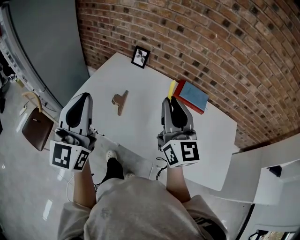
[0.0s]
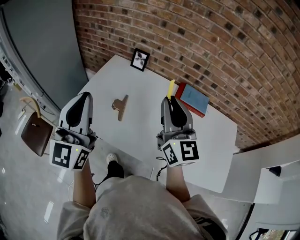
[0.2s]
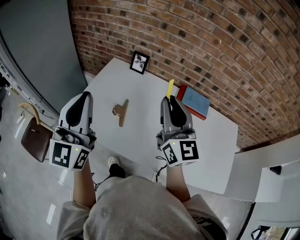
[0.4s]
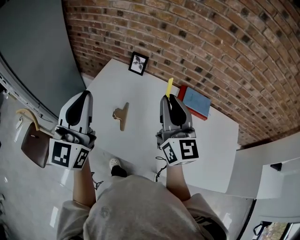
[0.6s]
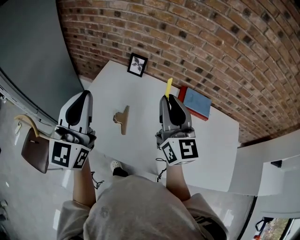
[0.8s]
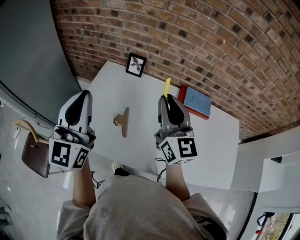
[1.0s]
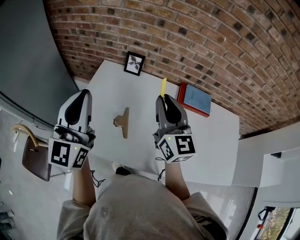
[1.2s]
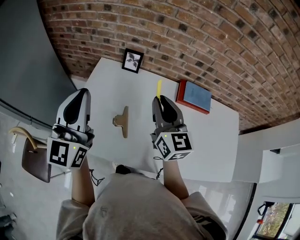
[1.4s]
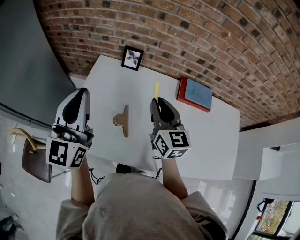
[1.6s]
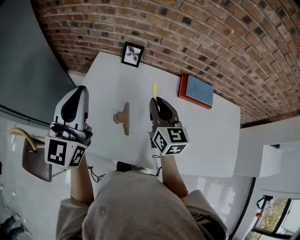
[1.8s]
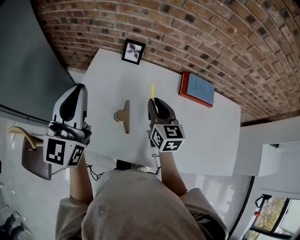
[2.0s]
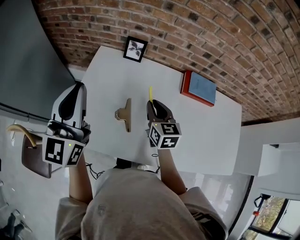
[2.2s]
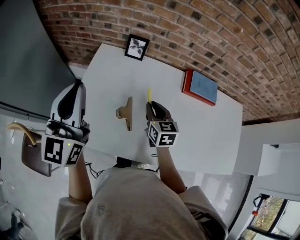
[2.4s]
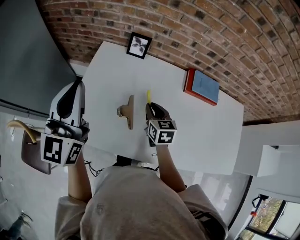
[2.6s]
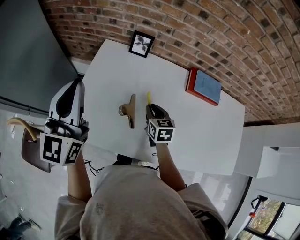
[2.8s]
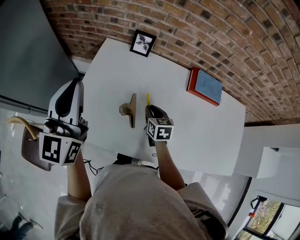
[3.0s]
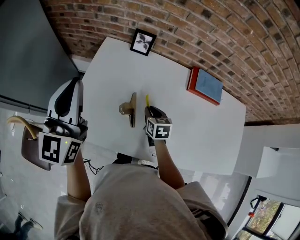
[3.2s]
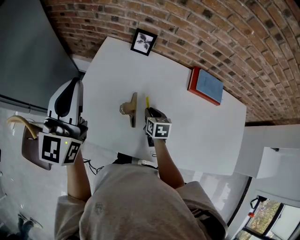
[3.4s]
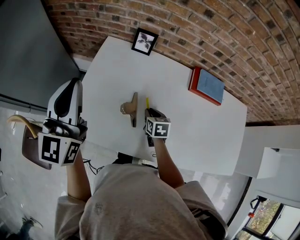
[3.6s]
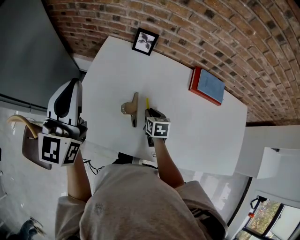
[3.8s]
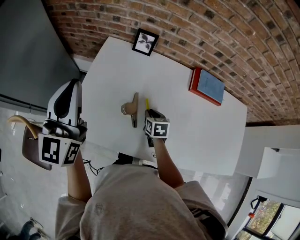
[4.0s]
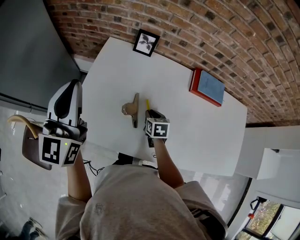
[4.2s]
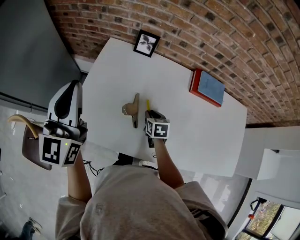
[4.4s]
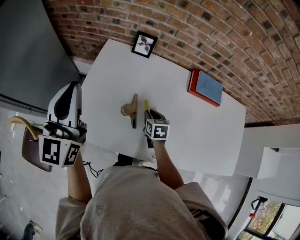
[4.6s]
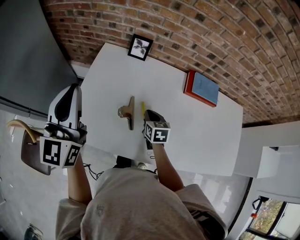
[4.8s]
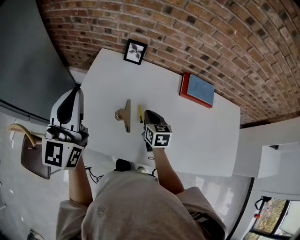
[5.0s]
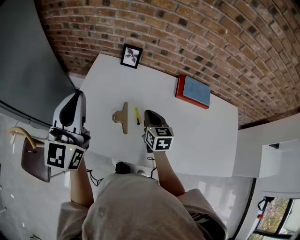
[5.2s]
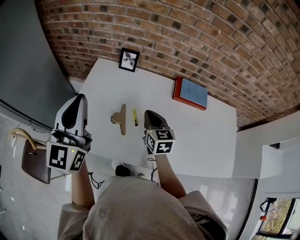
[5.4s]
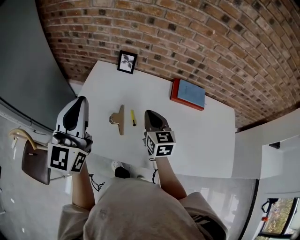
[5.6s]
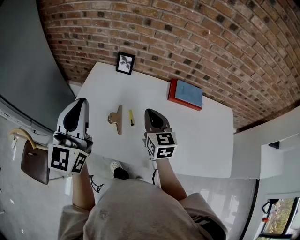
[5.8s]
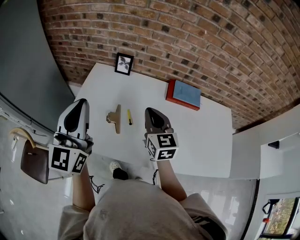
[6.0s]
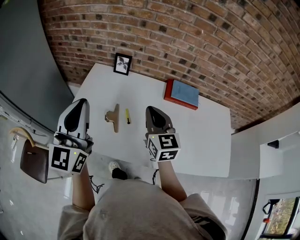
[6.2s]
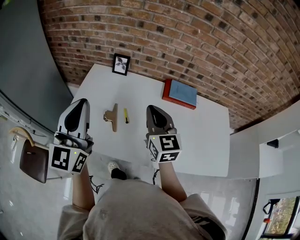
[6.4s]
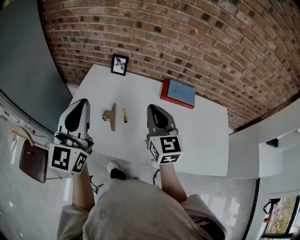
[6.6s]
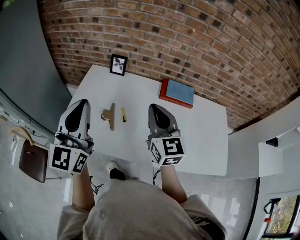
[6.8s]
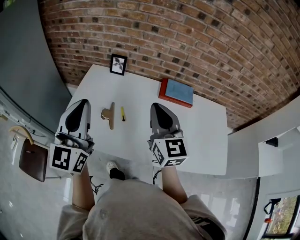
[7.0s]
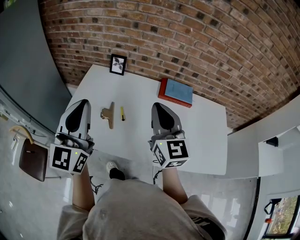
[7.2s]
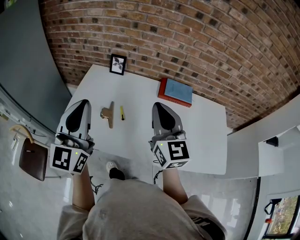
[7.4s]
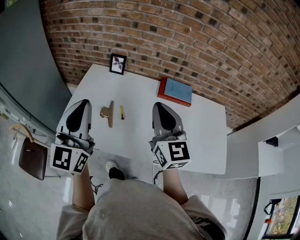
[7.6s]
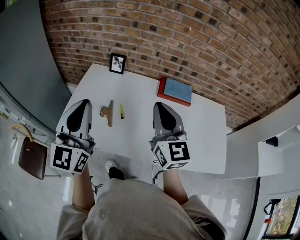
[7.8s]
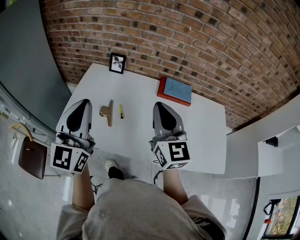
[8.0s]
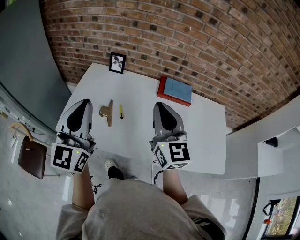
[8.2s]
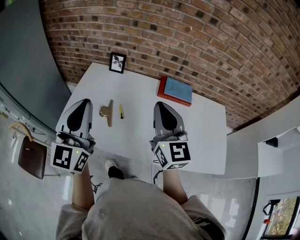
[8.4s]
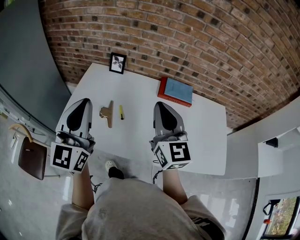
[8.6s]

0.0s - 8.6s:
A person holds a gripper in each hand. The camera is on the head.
0.0s - 1.4s: The left gripper is displaced forward by approximately 20 cm, while the right gripper heads forward, to the left and downward, covering approximately 20 cm.
1.4s - 2.8s: The right gripper is displaced downward by about 25 cm, and points its fingers some 40 degrees further downward. Meanwhile the left gripper shifts roughly 5 cm to the left.
2.8s - 4.4s: The right gripper shifts approximately 10 cm downward.
4.4s - 5.8s: The left gripper travels to the right and backward by some 15 cm; the right gripper heads upward, covering about 25 cm, and points its fingers some 40 degrees further upward.
5.8s - 7.2s: The left gripper heads backward and to the right, covering some 10 cm; the right gripper moves upward, backward and to the right, roughly 20 cm.
7.2s - 8.6s: The grippers move only a little.

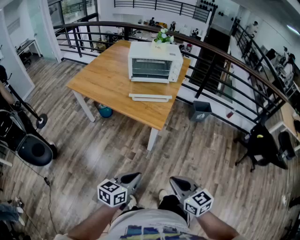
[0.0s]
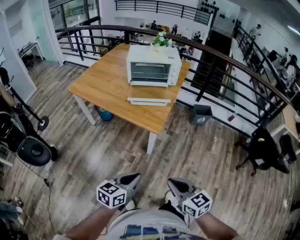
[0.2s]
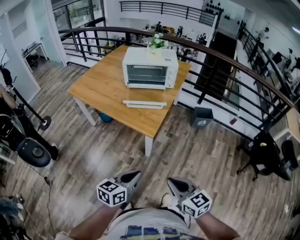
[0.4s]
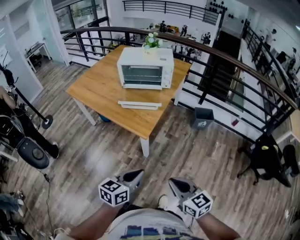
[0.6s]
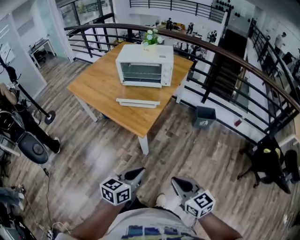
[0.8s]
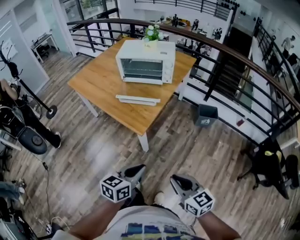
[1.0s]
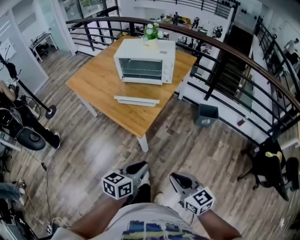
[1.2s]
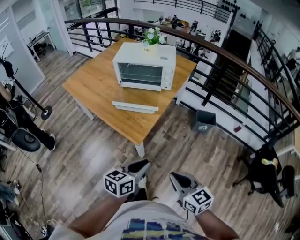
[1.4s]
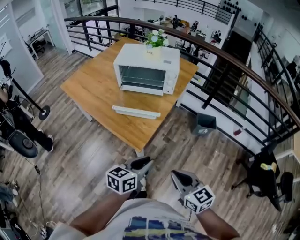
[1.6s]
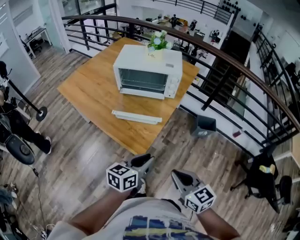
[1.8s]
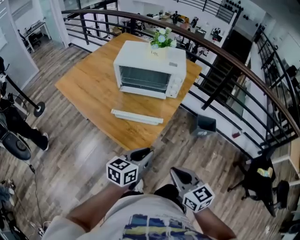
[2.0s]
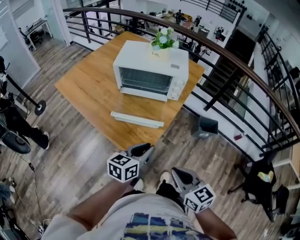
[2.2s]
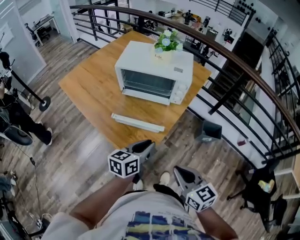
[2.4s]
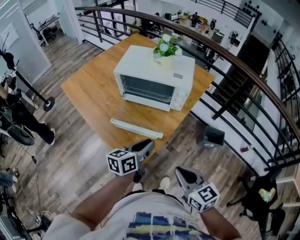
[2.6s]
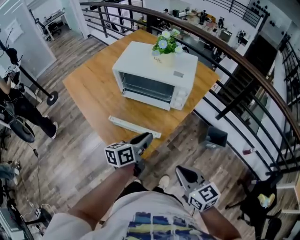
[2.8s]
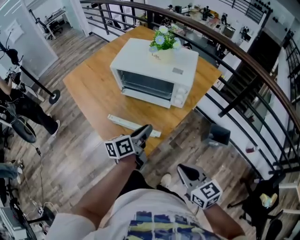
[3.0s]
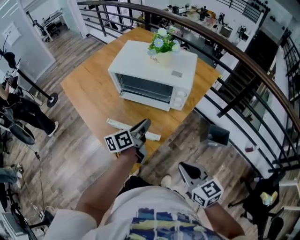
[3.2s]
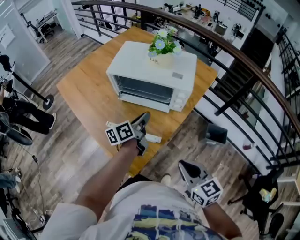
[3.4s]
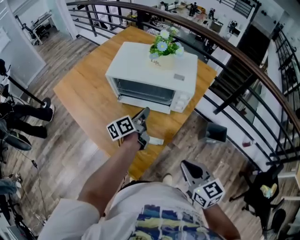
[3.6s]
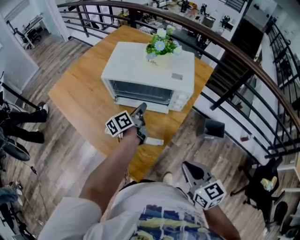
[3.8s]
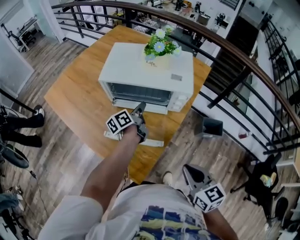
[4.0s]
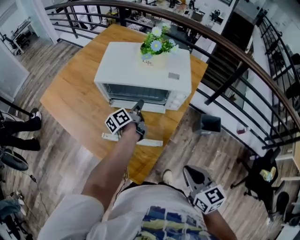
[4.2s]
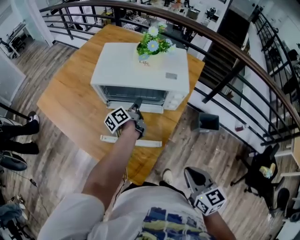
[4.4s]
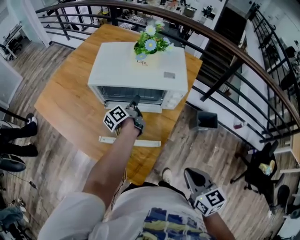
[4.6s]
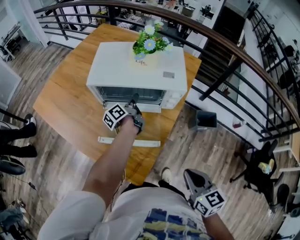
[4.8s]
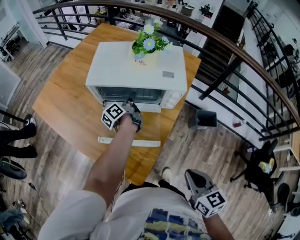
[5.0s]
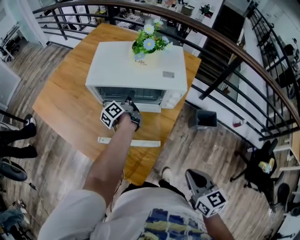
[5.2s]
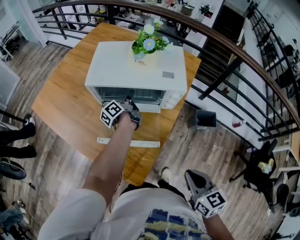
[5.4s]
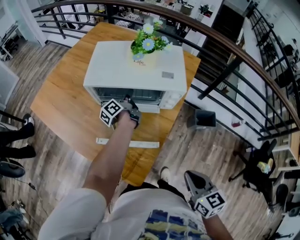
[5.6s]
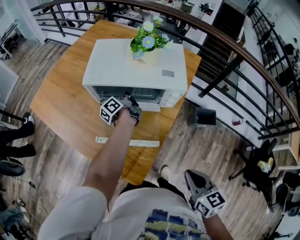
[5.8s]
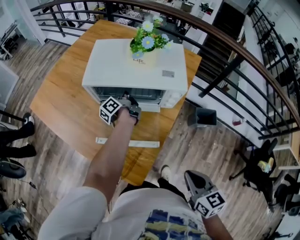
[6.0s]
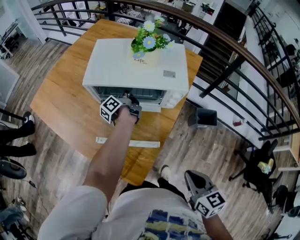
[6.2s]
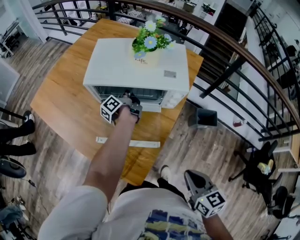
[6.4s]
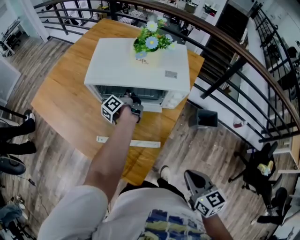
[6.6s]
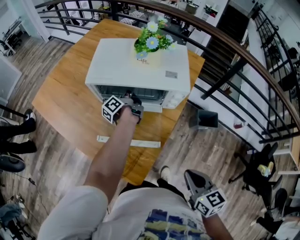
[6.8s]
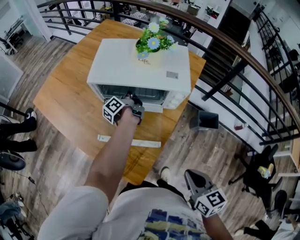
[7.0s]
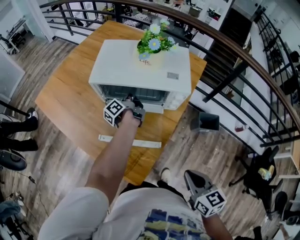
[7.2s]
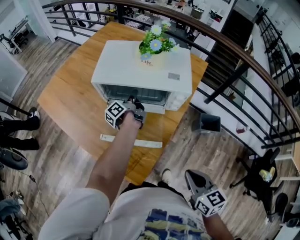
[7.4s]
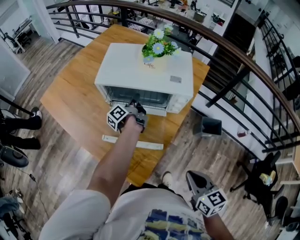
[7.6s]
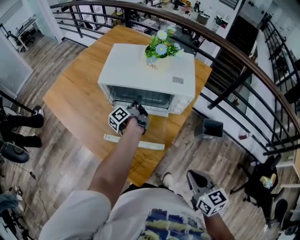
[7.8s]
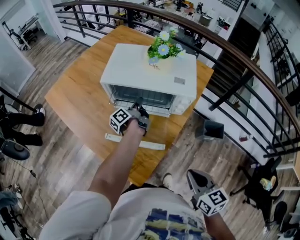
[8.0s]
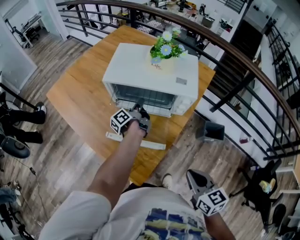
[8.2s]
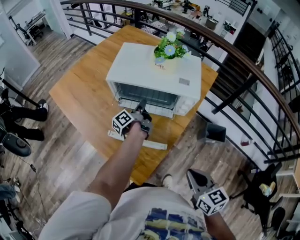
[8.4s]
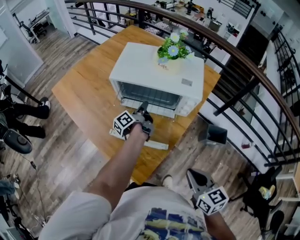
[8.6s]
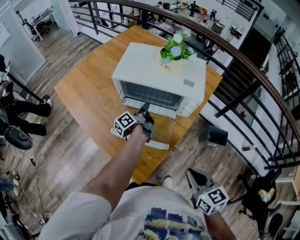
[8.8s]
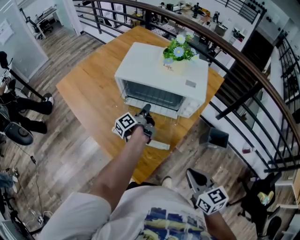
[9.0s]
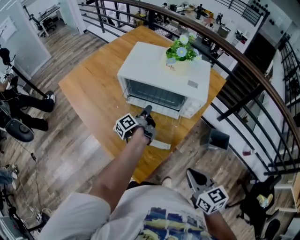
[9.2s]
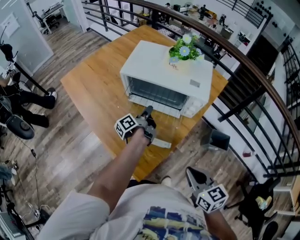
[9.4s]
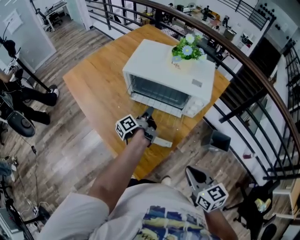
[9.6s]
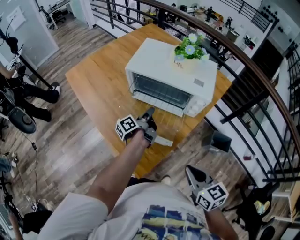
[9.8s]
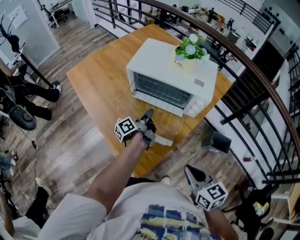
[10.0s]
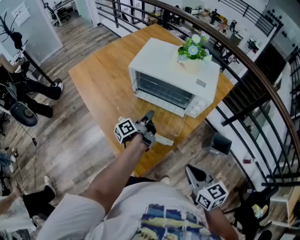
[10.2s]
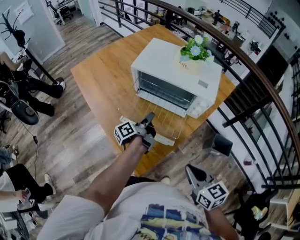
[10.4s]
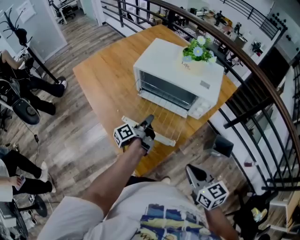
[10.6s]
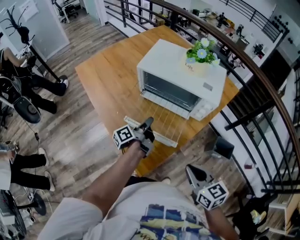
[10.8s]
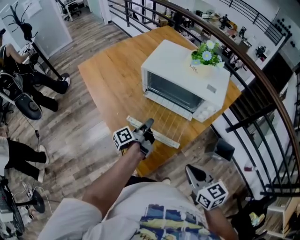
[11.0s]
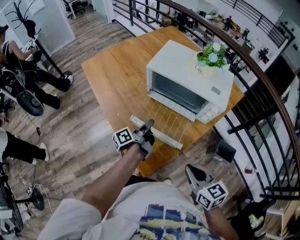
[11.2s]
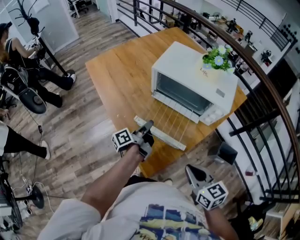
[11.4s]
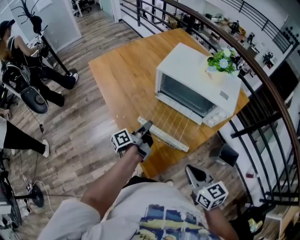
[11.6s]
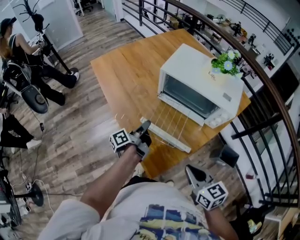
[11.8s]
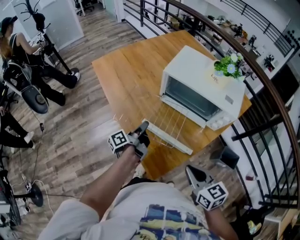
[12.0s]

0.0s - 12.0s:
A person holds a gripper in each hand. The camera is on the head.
0.0s - 1.6s: The right gripper shifts by some 30 cm.
1.6s - 3.0s: The right gripper moves some 25 cm.
3.0s - 4.4s: The right gripper moves about 5 cm, and rotates roughly 20 degrees.
10.4s - 12.0s: The right gripper changes place by some 10 cm.

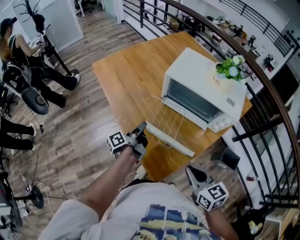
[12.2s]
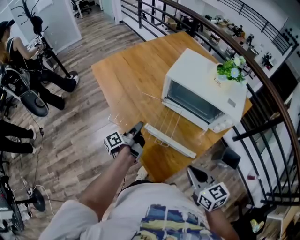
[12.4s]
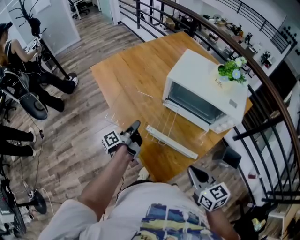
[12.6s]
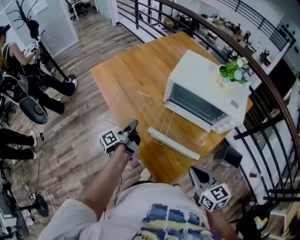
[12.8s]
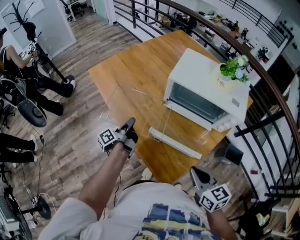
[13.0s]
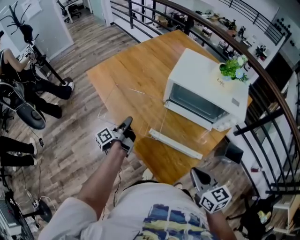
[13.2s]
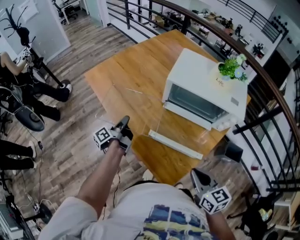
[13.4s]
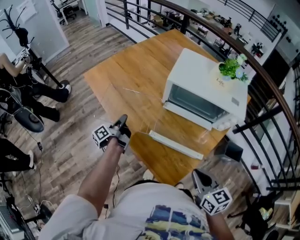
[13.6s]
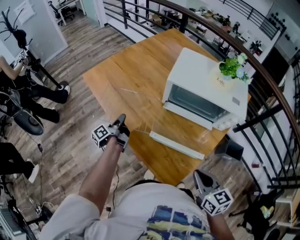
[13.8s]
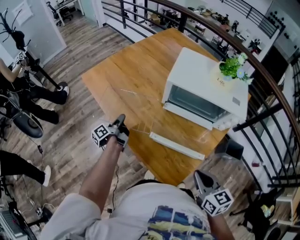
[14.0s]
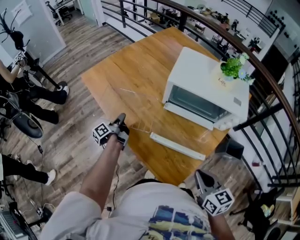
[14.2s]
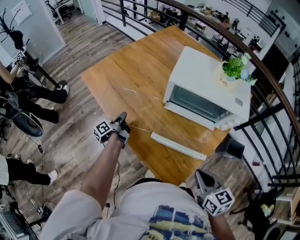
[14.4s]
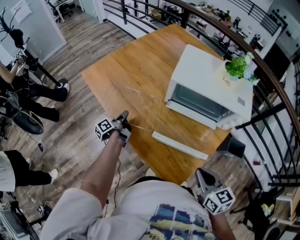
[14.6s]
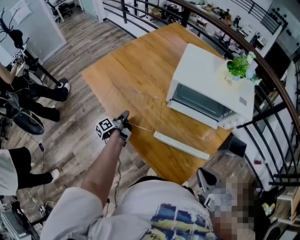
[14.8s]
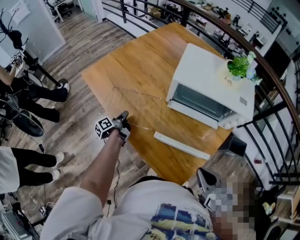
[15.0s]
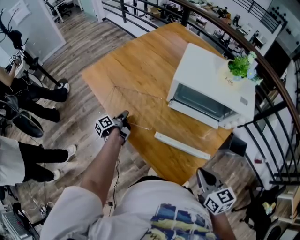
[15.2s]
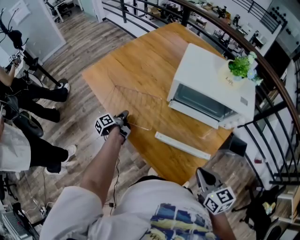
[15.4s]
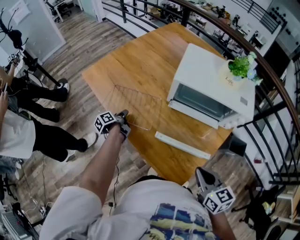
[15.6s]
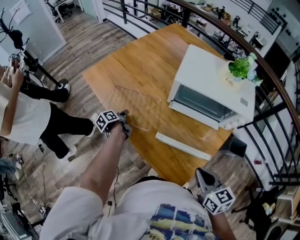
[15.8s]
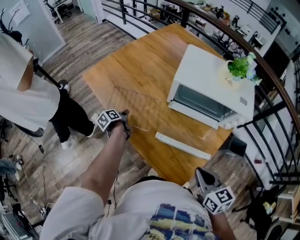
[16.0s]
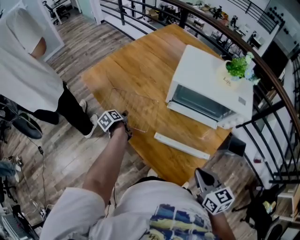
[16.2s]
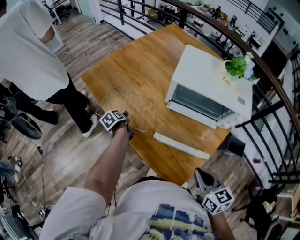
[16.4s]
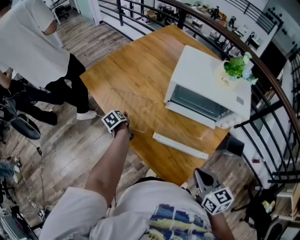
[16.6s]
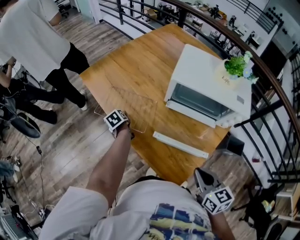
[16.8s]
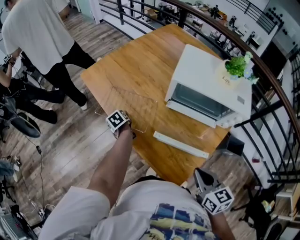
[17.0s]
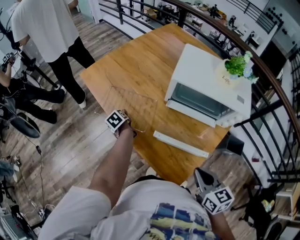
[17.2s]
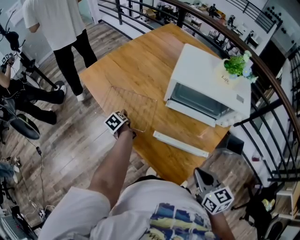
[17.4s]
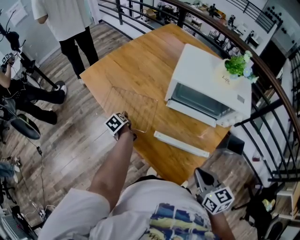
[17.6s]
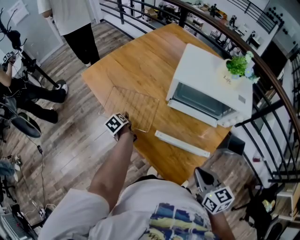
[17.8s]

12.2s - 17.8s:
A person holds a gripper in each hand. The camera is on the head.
12.2s - 13.6s: The right gripper ends up some 5 cm from where it was.
